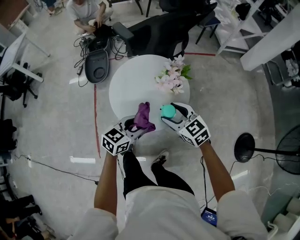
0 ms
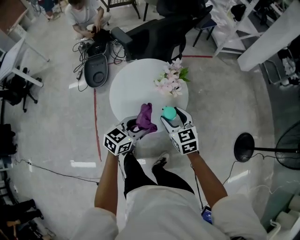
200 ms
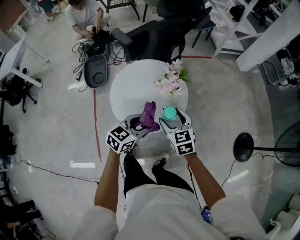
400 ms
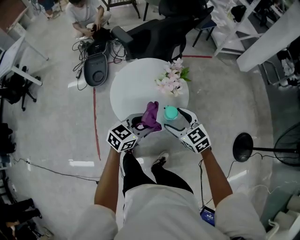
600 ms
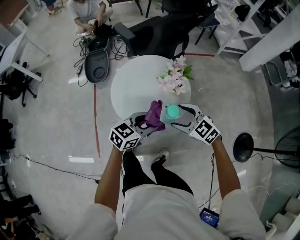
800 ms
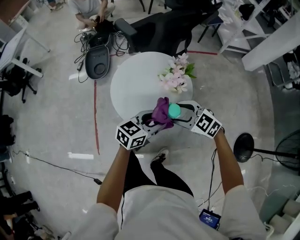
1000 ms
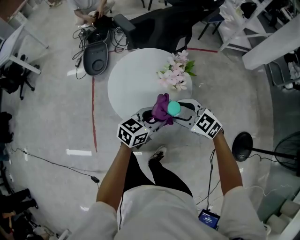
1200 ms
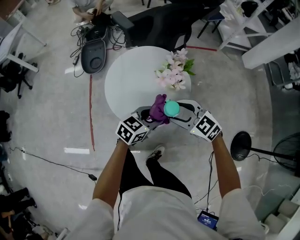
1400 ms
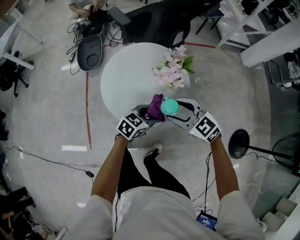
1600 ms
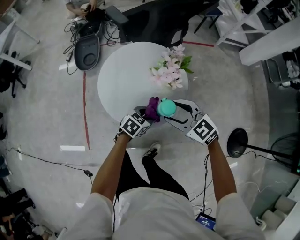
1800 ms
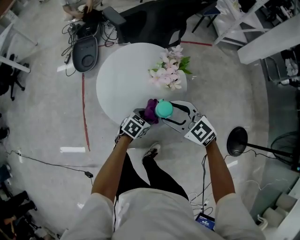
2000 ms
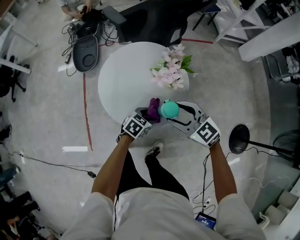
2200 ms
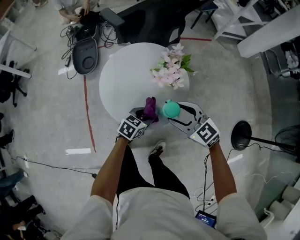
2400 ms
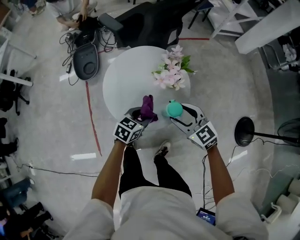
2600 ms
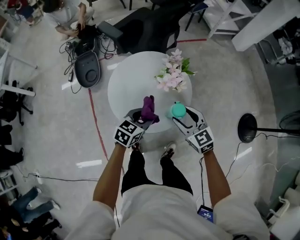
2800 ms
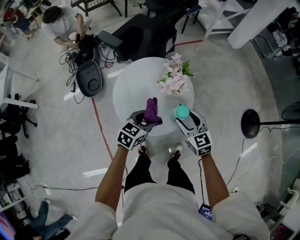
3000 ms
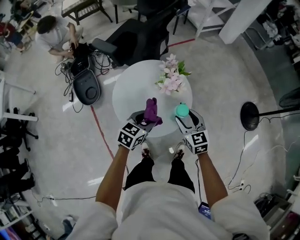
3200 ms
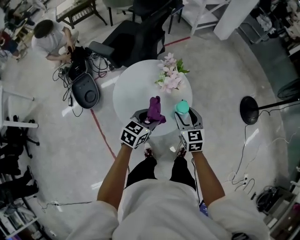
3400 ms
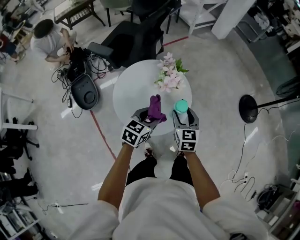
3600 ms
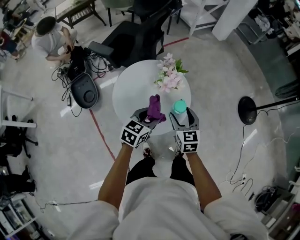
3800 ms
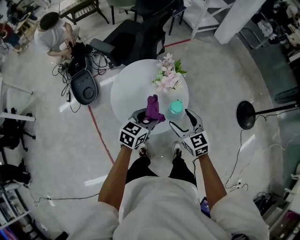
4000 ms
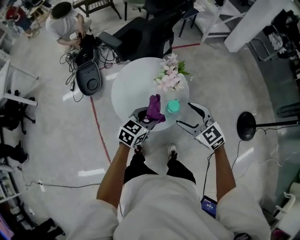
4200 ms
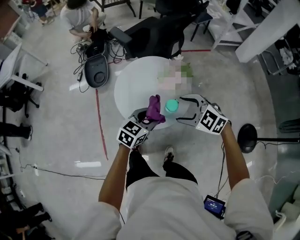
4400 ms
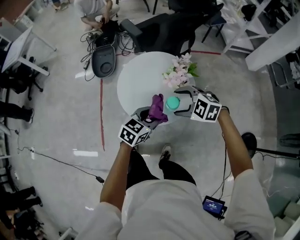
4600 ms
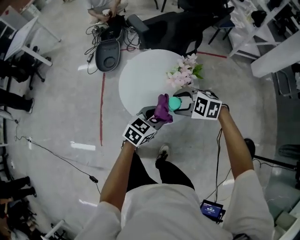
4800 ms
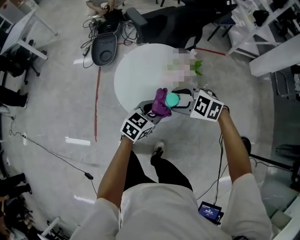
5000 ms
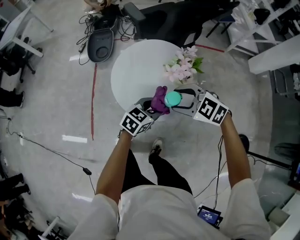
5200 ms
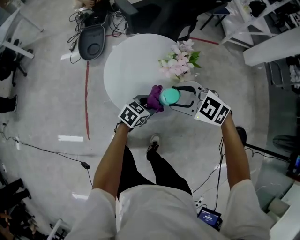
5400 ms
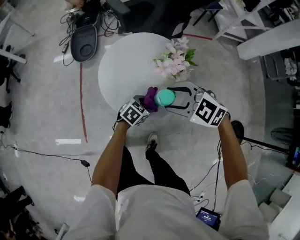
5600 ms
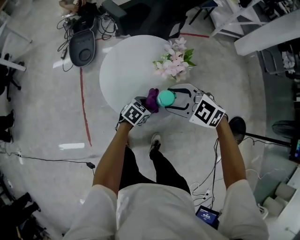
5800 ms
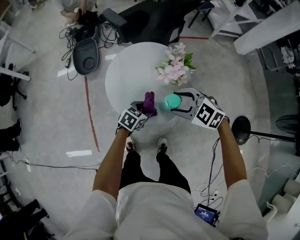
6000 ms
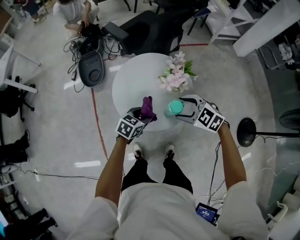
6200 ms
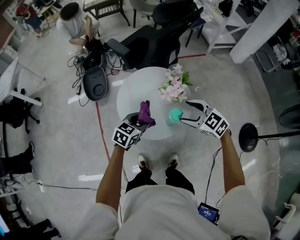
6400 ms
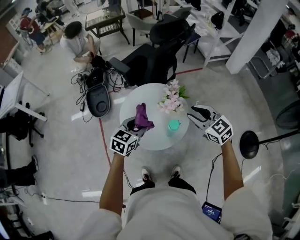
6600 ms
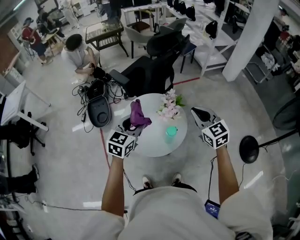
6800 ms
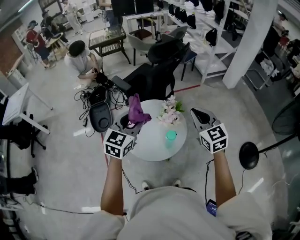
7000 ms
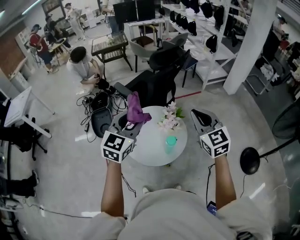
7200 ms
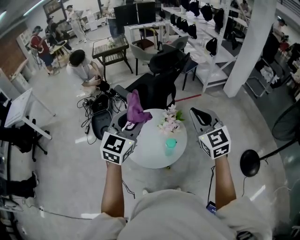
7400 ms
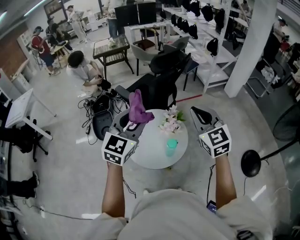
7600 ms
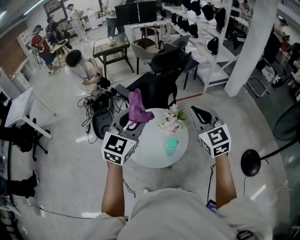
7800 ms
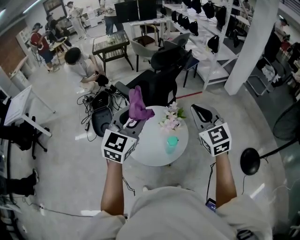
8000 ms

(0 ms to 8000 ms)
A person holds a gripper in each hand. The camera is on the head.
0 ms - 1600 ms: The left gripper is displaced downward by some 10 cm.
1600 ms - 3200 ms: The right gripper changes its angle by roughly 60 degrees. The left gripper changes place by about 15 cm.
3200 ms - 4800 ms: The left gripper ends up about 10 cm from where it was, while the right gripper moves roughly 10 cm upward and comes back, and changes its angle by roughly 90 degrees.
4800 ms - 6400 ms: The right gripper moves roughly 5 cm, and changes its angle by some 40 degrees; the left gripper goes downward and returns, approximately 20 cm each way.
6400 ms - 8000 ms: The two grippers go roughly 30 cm upward. The left gripper rotates approximately 40 degrees. Meanwhile the right gripper swivels about 40 degrees, and closes.

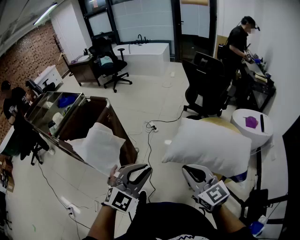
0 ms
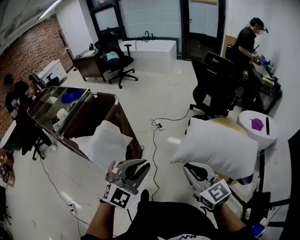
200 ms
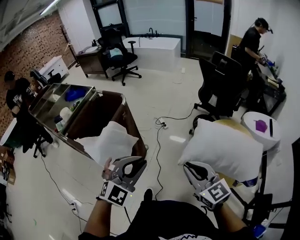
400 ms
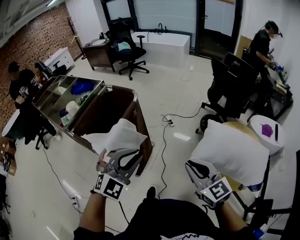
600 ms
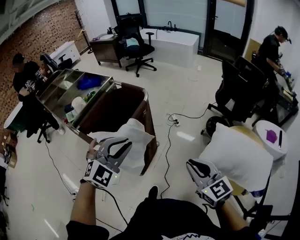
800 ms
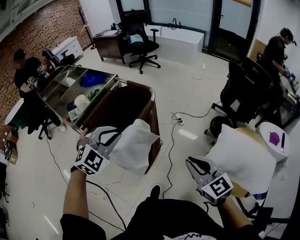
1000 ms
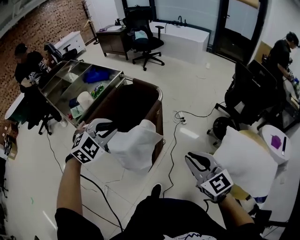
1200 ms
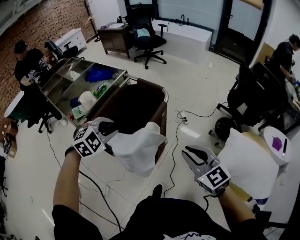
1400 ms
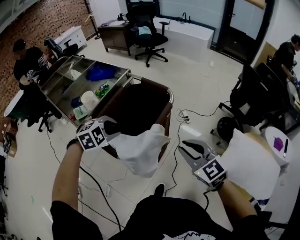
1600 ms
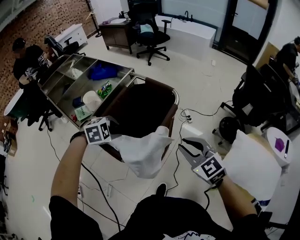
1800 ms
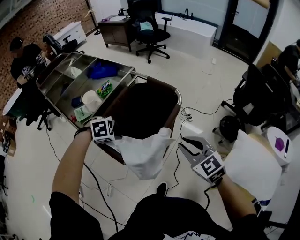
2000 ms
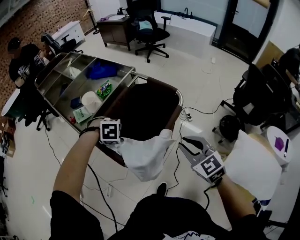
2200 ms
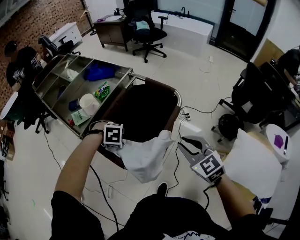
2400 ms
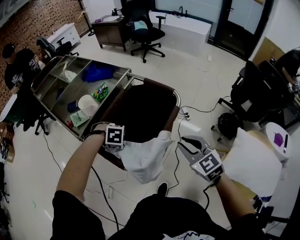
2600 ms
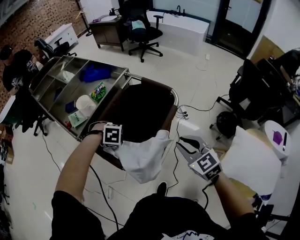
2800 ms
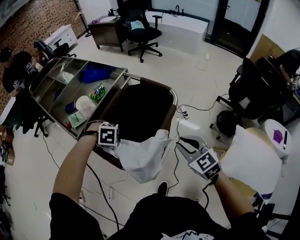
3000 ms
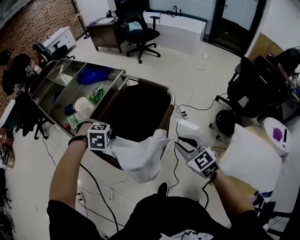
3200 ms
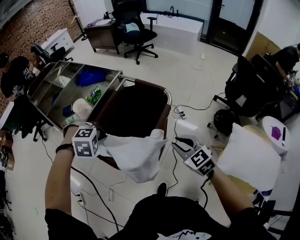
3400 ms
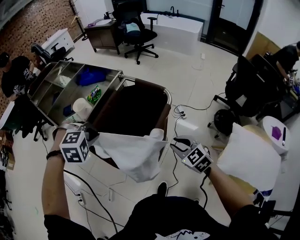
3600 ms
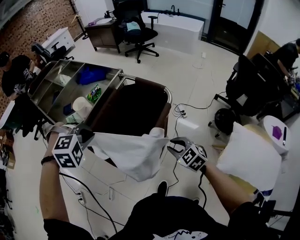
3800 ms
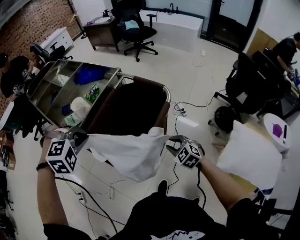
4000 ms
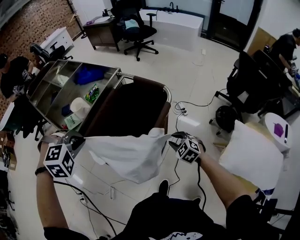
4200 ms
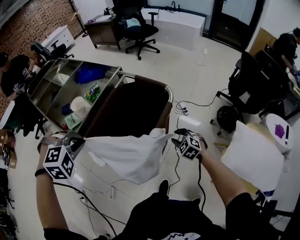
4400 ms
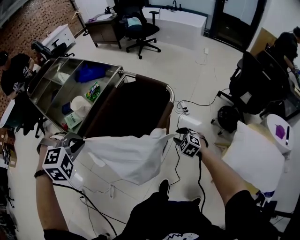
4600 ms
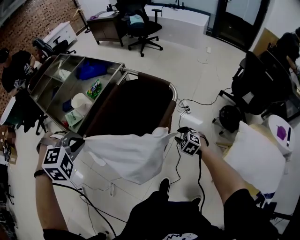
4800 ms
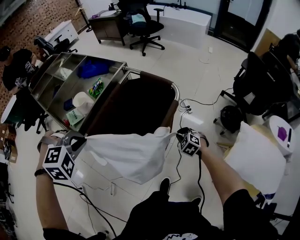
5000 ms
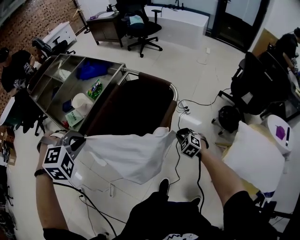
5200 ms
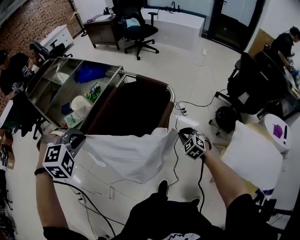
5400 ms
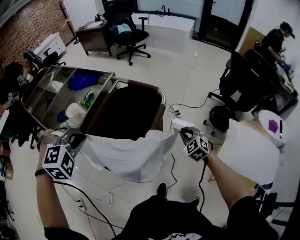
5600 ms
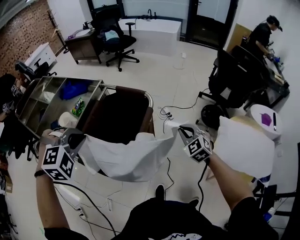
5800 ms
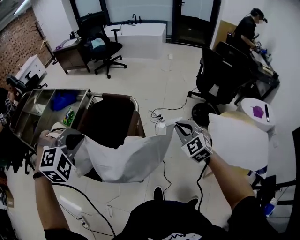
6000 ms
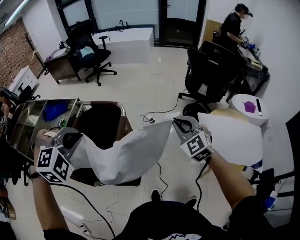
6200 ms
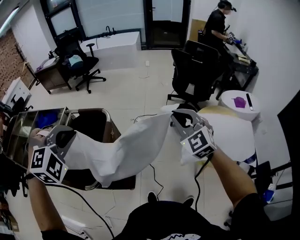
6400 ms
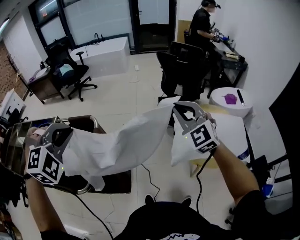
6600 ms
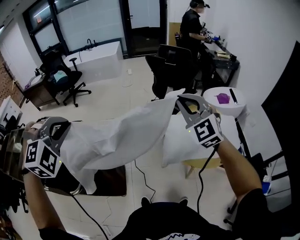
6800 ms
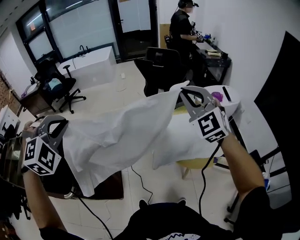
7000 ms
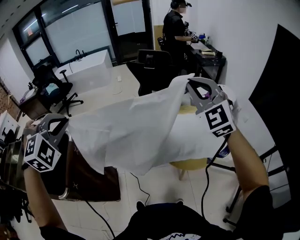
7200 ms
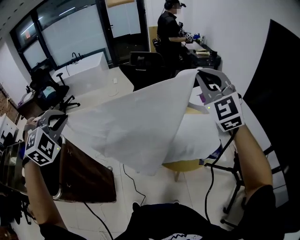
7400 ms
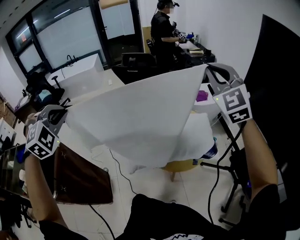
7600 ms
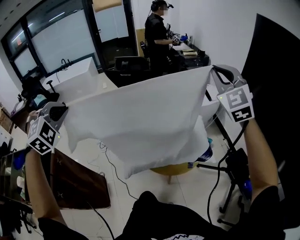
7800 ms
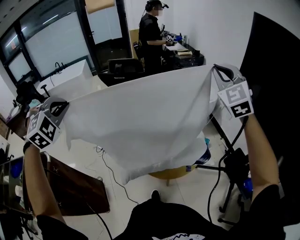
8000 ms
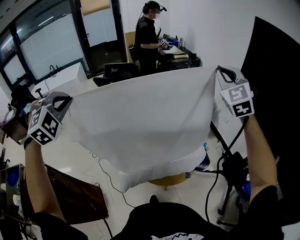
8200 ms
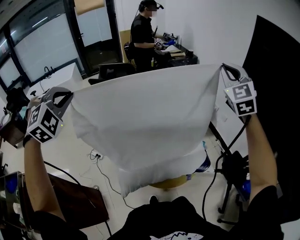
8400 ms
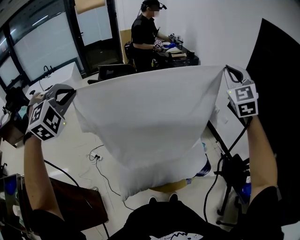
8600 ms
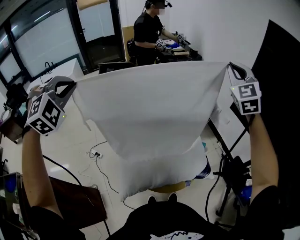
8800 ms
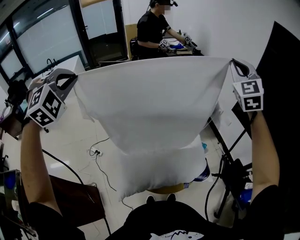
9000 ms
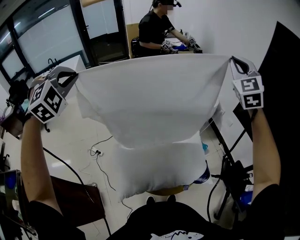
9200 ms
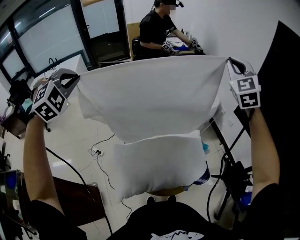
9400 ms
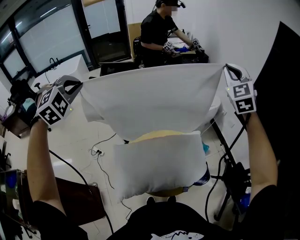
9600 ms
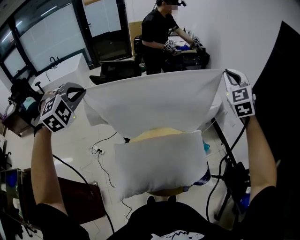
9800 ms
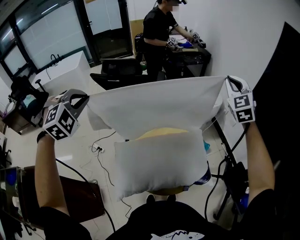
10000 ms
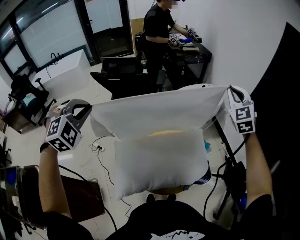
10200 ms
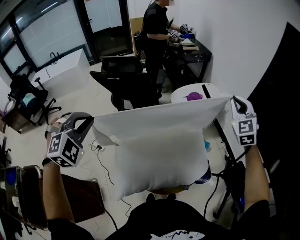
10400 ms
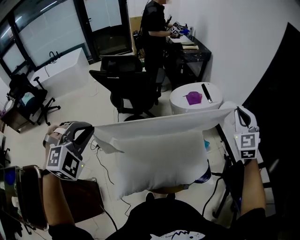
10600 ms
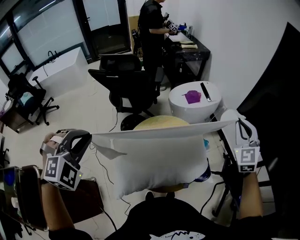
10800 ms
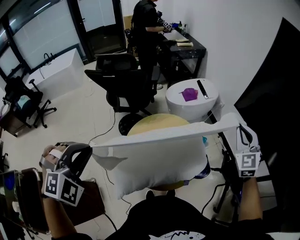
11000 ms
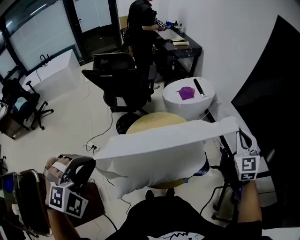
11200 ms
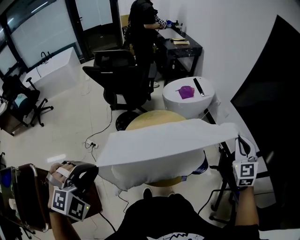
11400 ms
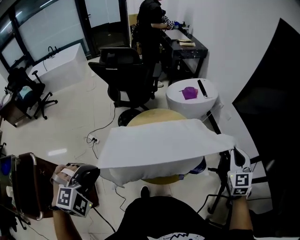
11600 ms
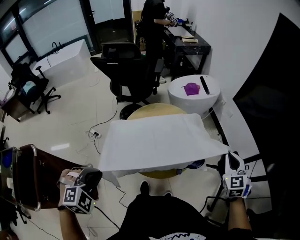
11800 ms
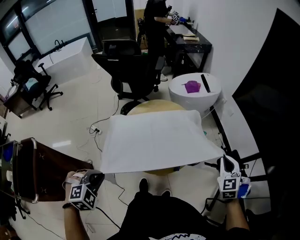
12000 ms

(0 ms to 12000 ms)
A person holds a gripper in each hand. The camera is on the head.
0 ms - 1600 ms: The pair of grippers is taken to the left and forward, about 50 cm. The right gripper turns by about 20 degrees; the left gripper tips its fingers downward by some 40 degrees.
1600 ms - 3000 ms: The left gripper heads downward, covering some 10 cm, rotates some 40 degrees, and closes up; the right gripper moves downward, about 5 cm.
3000 ms - 4400 ms: The right gripper heads downward, covering some 20 cm, and swivels approximately 30 degrees. The left gripper moves upward, about 15 cm, and changes its angle by some 30 degrees.
4400 ms - 6000 ms: The right gripper moves upward and to the right, approximately 25 cm, changes its angle by roughly 30 degrees, and closes up; the left gripper travels to the right and upward by approximately 15 cm, and turns by approximately 20 degrees.
6000 ms - 7600 ms: Both grippers are carried about 50 cm. The left gripper rotates about 30 degrees; the right gripper rotates approximately 50 degrees.
7600 ms - 9000 ms: Both grippers move forward and to the right, approximately 30 cm. The right gripper changes its angle by some 20 degrees.
9000 ms - 10400 ms: The left gripper goes roughly 15 cm downward and backward; the right gripper heads downward, covering some 15 cm.
10400 ms - 12000 ms: The left gripper heads backward and downward, covering roughly 35 cm, and turns by roughly 30 degrees, while the right gripper goes approximately 35 cm backward, downward and to the right, and swivels roughly 20 degrees.

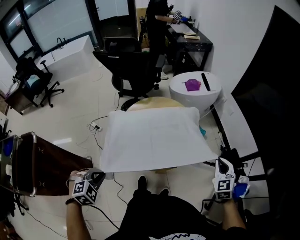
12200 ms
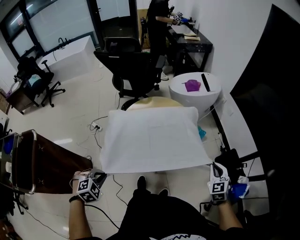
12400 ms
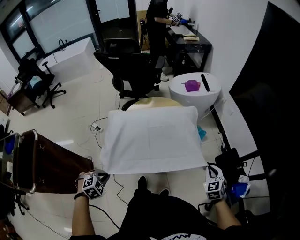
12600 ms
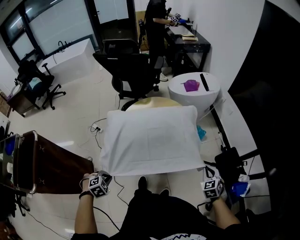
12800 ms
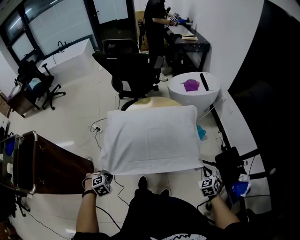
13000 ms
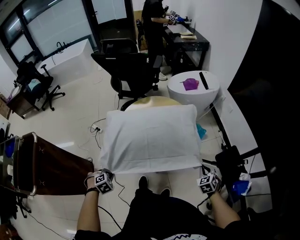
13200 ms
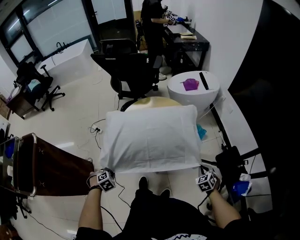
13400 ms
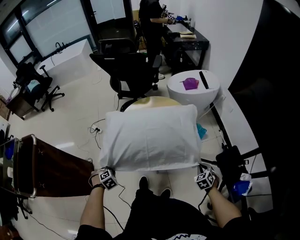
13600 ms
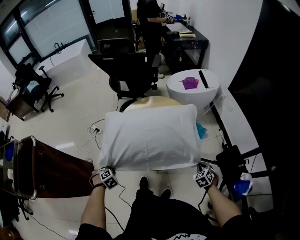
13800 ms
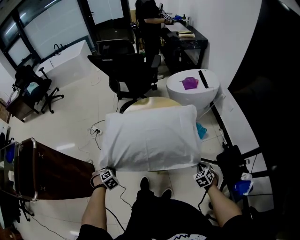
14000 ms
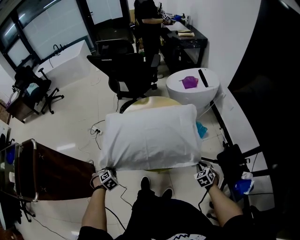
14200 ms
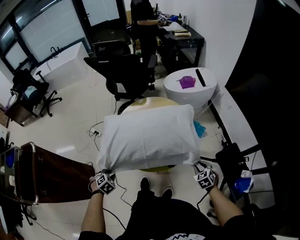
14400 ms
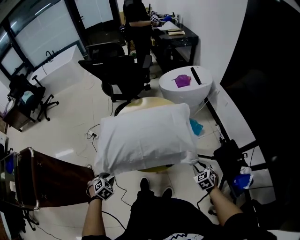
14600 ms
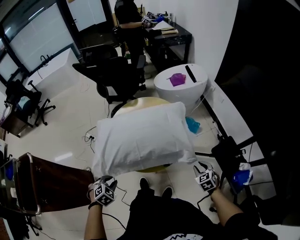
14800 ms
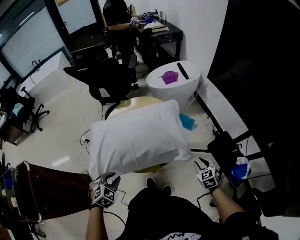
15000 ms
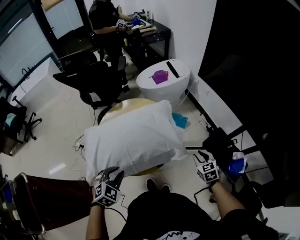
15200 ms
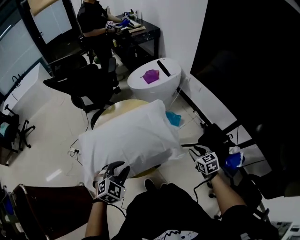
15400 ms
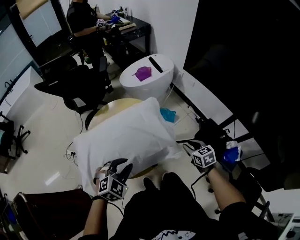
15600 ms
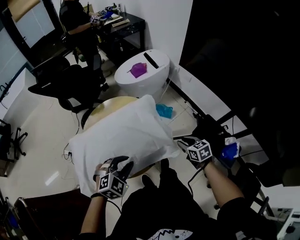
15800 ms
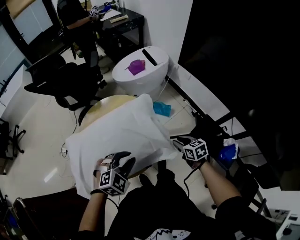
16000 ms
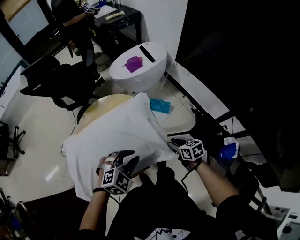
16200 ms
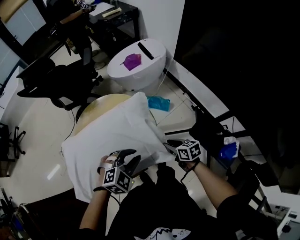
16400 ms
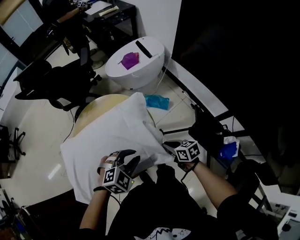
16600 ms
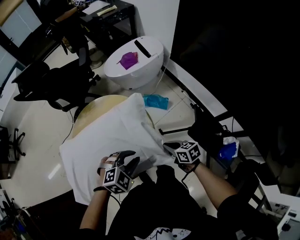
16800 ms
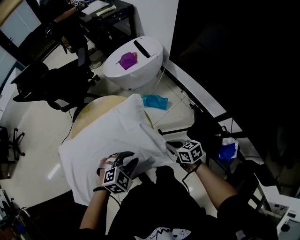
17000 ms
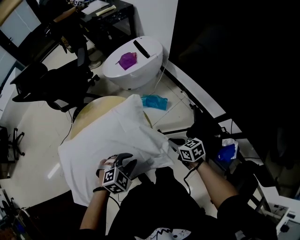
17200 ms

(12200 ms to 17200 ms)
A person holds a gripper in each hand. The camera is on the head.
12200 ms - 13800 ms: Both grippers move downward, approximately 25 cm. The left gripper swivels some 20 degrees, while the right gripper swivels some 30 degrees.
13800 ms - 15600 ms: The right gripper is displaced upward by approximately 10 cm, rotates approximately 40 degrees, and opens up; the left gripper ends up some 35 cm from where it was, and angles its fingers upward, by about 30 degrees.
15600 ms - 17200 ms: The right gripper is displaced forward by approximately 5 cm, and closes; the left gripper moves to the right, forward and downward, some 15 cm.
